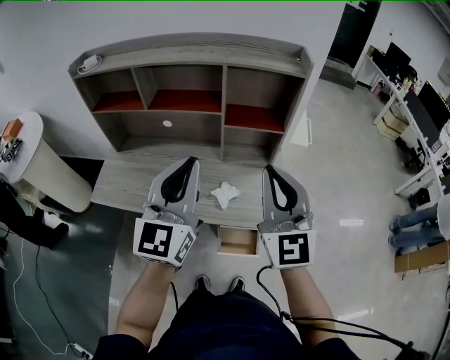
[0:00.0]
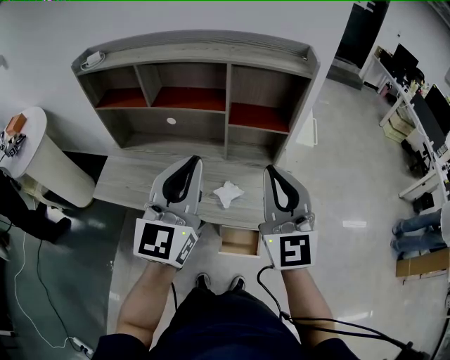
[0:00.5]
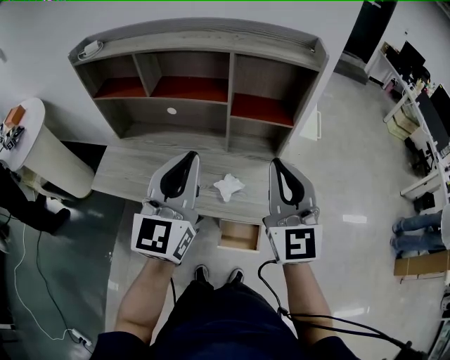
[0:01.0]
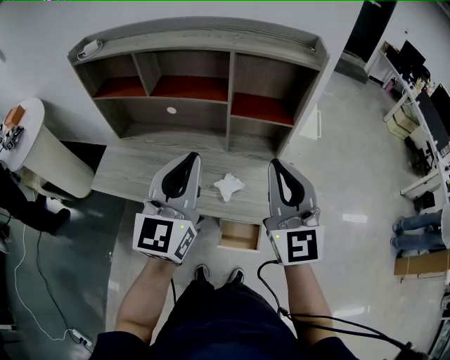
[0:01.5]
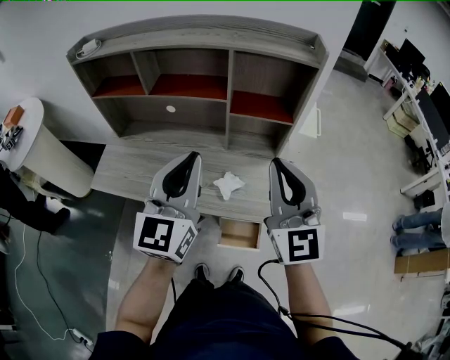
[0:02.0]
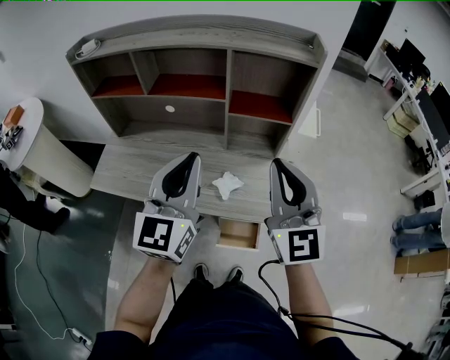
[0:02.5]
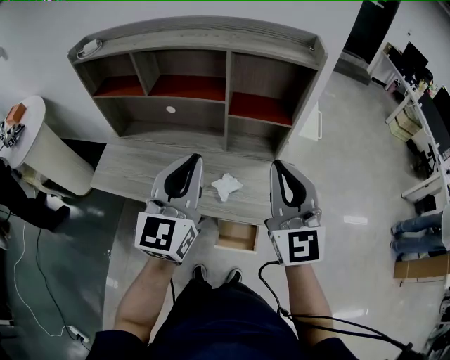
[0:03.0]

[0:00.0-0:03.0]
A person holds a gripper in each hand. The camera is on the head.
0:00.0 to 0:03.0: There are only small adjustments of the grippers.

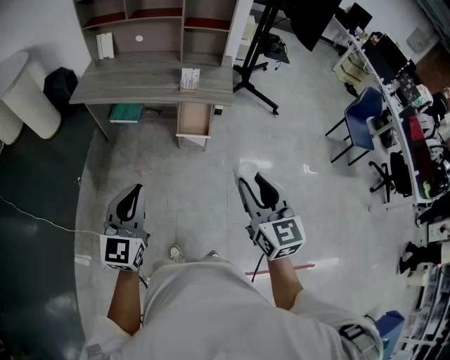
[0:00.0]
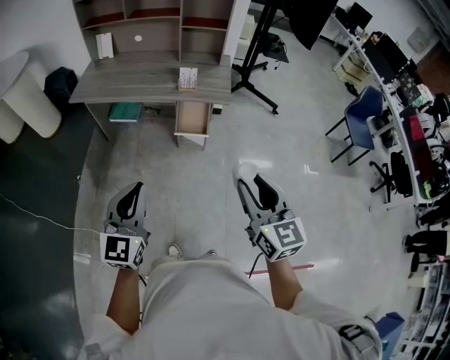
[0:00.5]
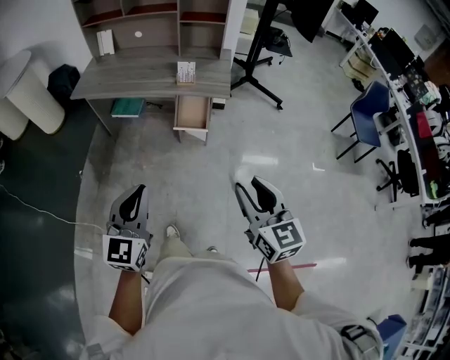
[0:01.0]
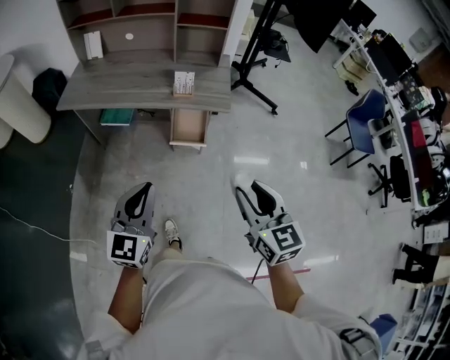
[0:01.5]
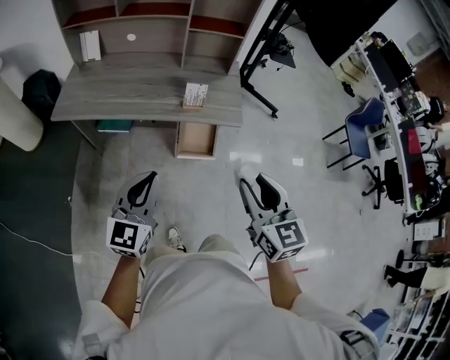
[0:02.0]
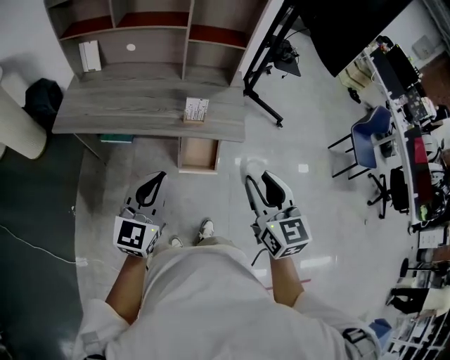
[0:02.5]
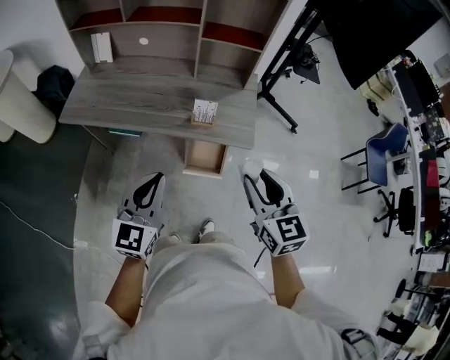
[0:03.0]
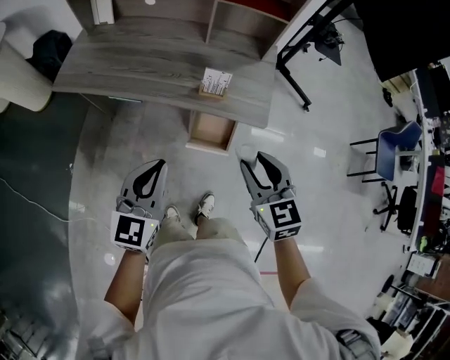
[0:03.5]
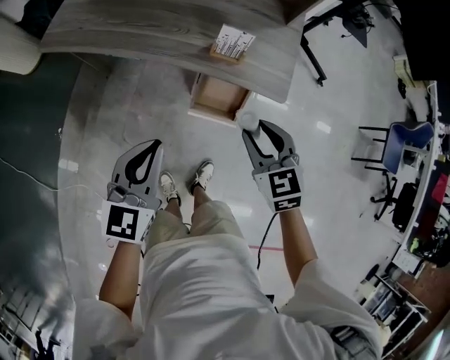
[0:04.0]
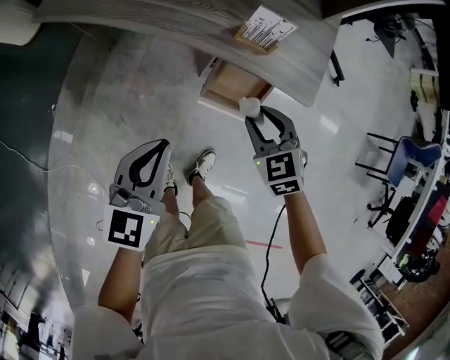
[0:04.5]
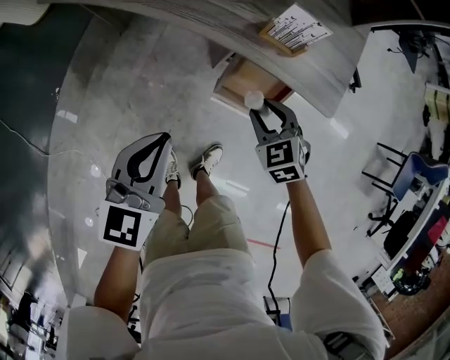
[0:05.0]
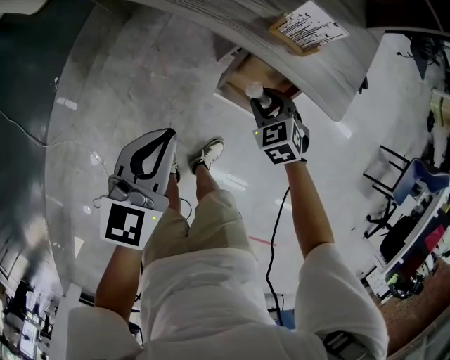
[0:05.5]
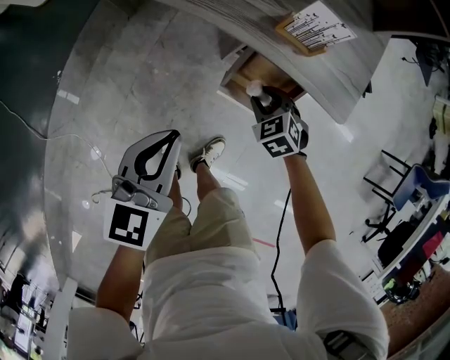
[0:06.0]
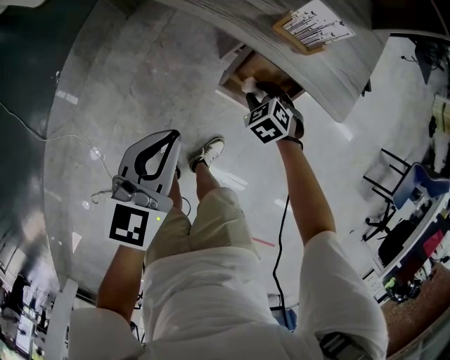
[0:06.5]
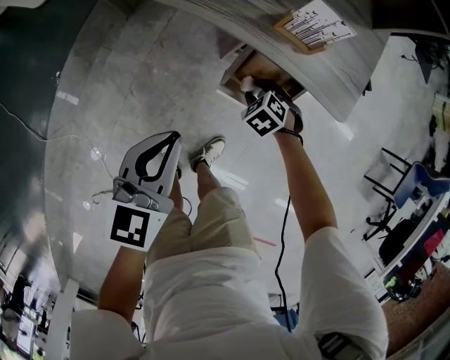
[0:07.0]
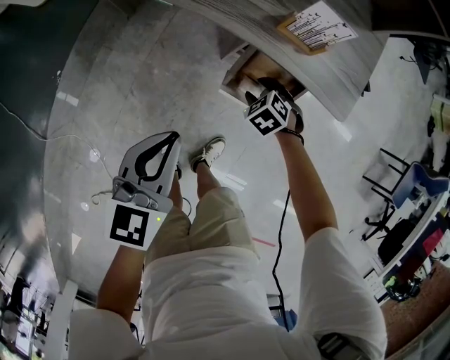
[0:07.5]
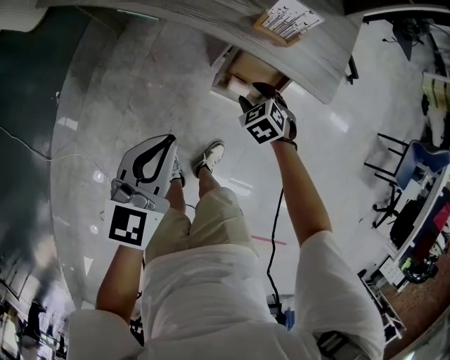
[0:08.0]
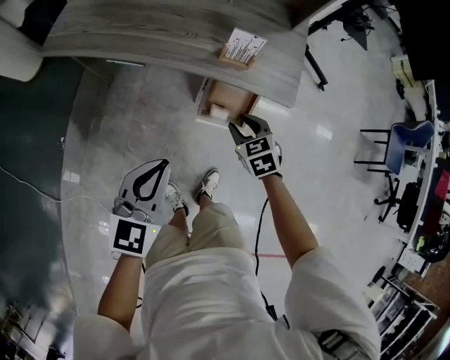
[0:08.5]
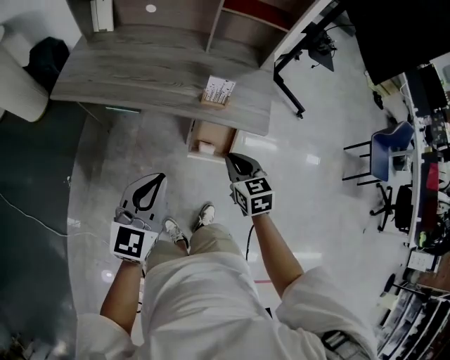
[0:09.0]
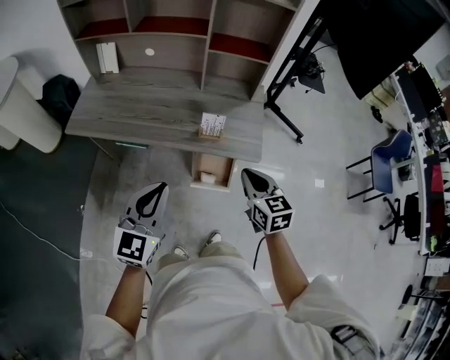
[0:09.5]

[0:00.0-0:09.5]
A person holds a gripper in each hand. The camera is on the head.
0:00.0 to 0:02.0: The grippers both shift forward by about 20 cm.
0:02.0 to 0:04.0: The right gripper shifts roughly 30 cm downward and forward, and rotates some 30 degrees. The left gripper heads downward and forward, covering about 15 cm.
0:04.0 to 0:05.5: The left gripper heads downward, covering roughly 15 cm. Meanwhile the right gripper shifts some 25 cm downward, and rotates about 30 degrees.
0:05.5 to 0:07.5: The right gripper moves downward, approximately 5 cm.
0:07.5 to 0:09.5: The left gripper shifts some 25 cm upward, and changes its angle by approximately 30 degrees. The right gripper goes about 40 cm upward, tilts its fingers about 50 degrees upward, and closes up.

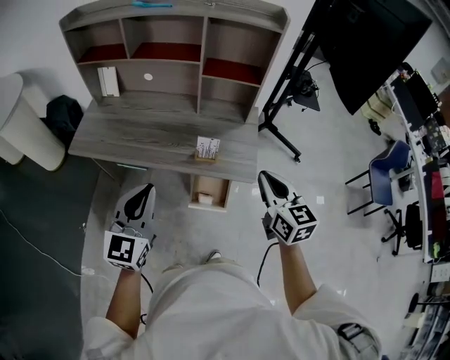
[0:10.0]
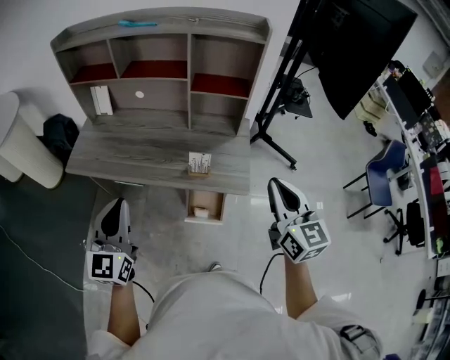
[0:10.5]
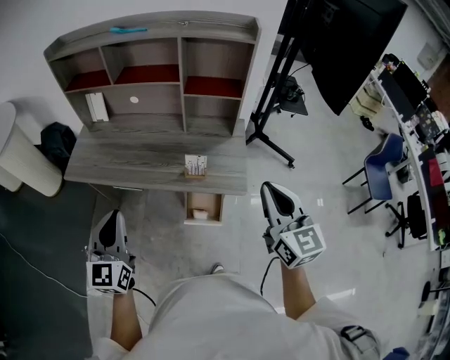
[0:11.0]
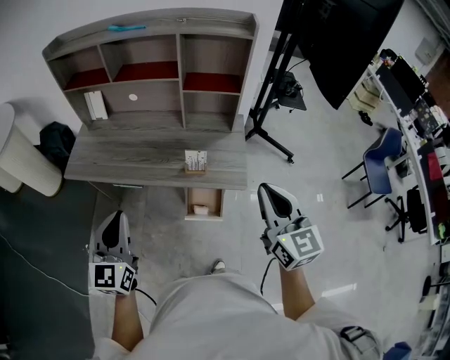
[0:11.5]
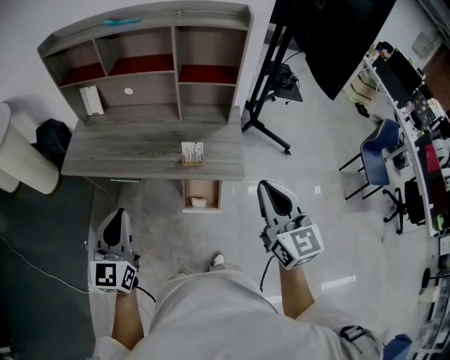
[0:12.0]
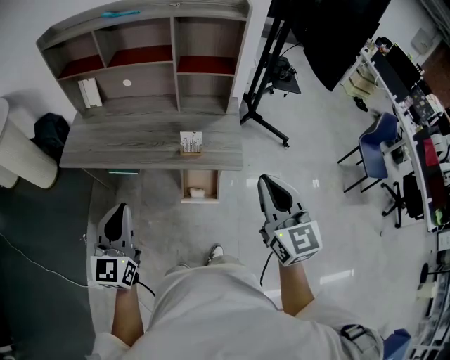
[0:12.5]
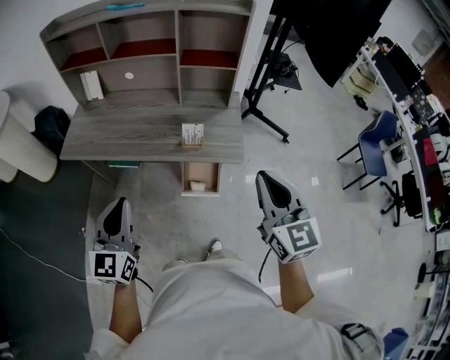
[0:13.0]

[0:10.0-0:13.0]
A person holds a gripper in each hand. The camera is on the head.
0:10.0 to 0:11.5: The right gripper is displaced upward by approximately 10 cm. The left gripper moves to the left, some 5 cm.
0:11.5 to 0:13.0: The two grippers go approximately 5 cm backward.

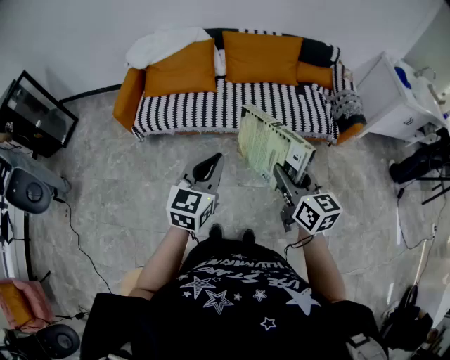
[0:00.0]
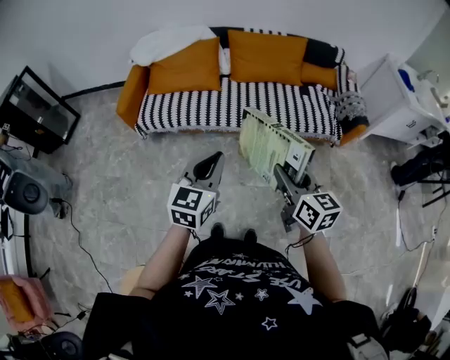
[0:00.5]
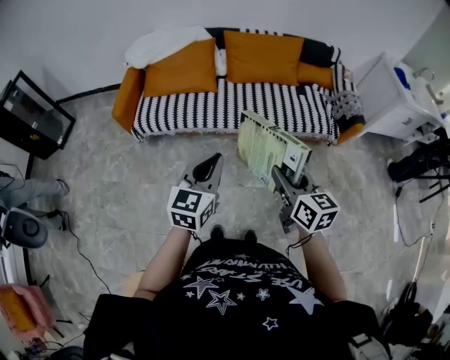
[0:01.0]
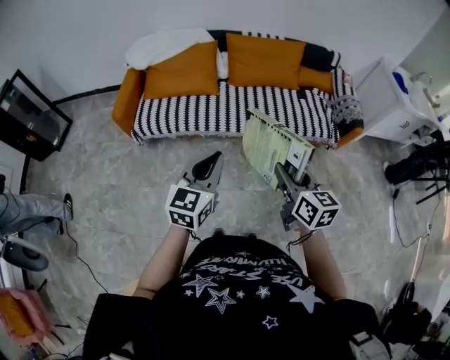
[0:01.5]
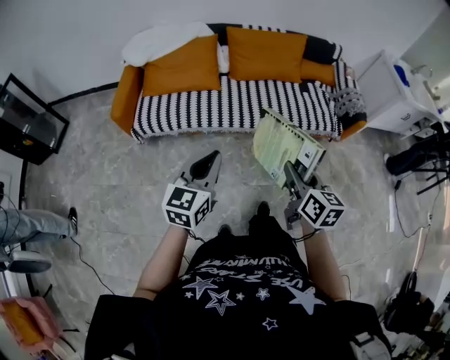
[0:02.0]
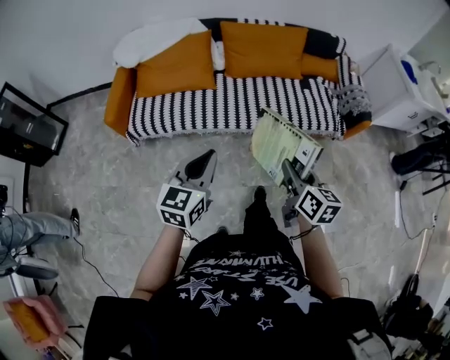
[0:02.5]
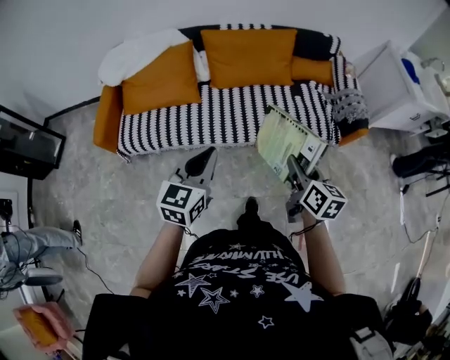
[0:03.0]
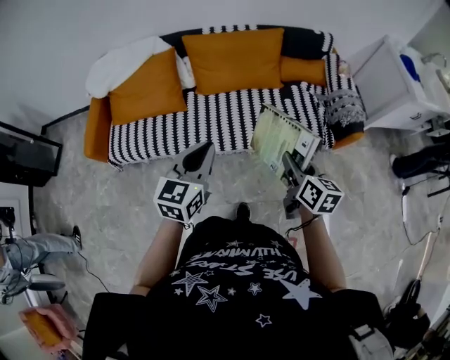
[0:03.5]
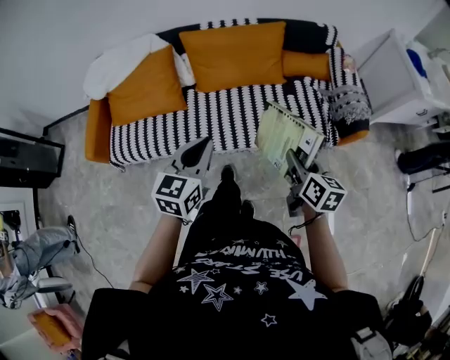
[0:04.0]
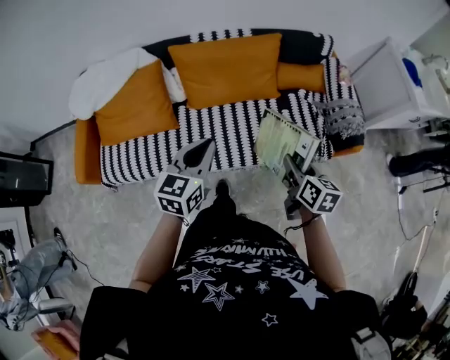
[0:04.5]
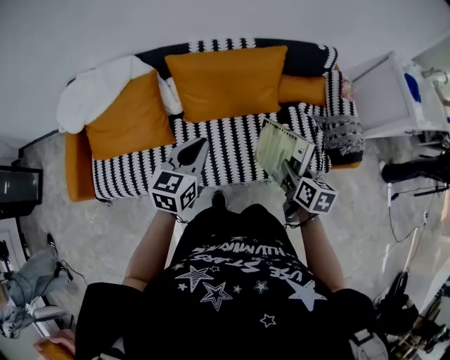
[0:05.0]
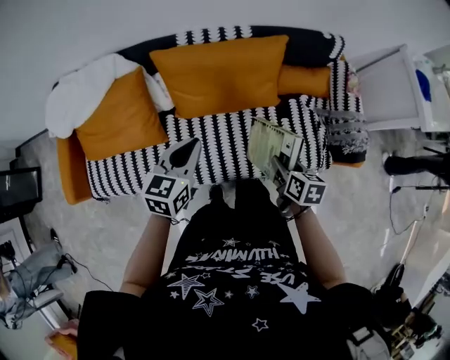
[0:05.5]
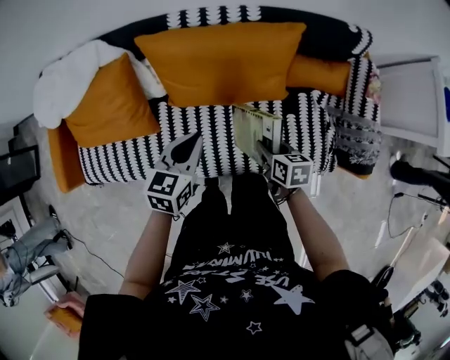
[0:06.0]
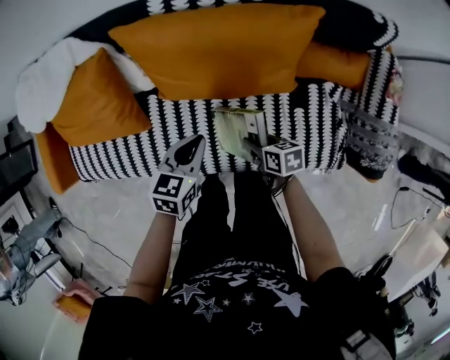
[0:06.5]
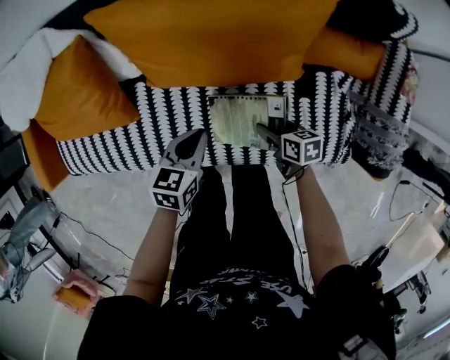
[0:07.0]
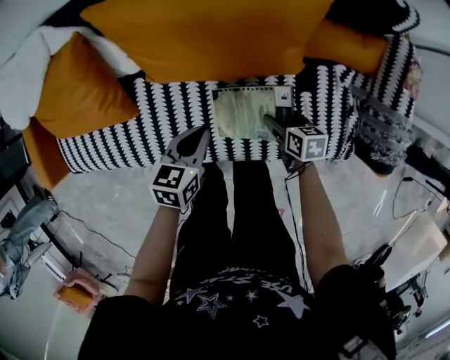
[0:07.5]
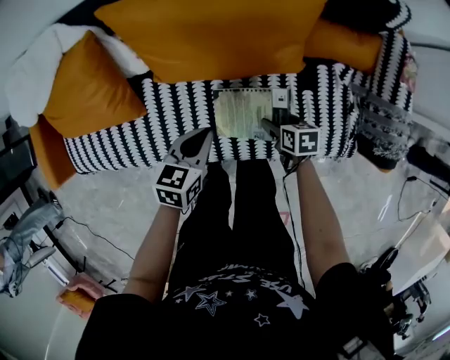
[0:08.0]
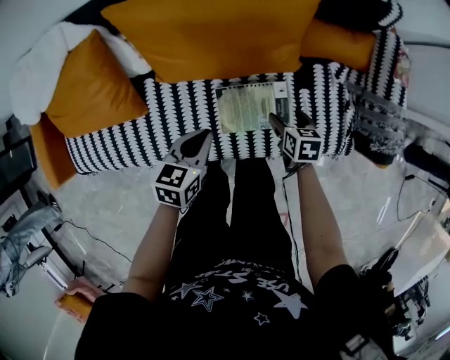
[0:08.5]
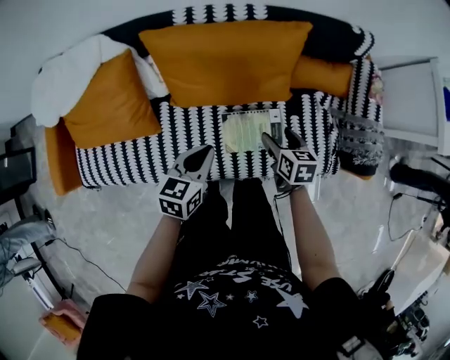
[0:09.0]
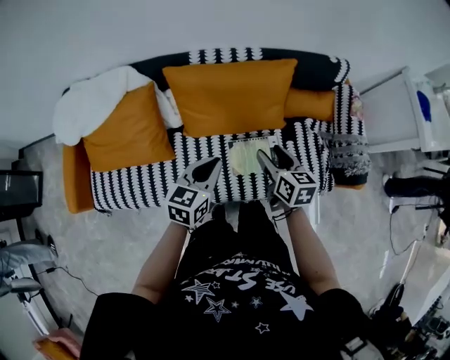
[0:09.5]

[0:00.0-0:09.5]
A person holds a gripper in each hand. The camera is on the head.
0:00.0 to 0:02.0: The left gripper moves to the left, about 10 cm. Meanwhile the right gripper heads to the left, covering roughly 5 cm.
0:02.0 to 0:04.0: Both grippers move forward and to the right, some 35 cm.
0:04.0 to 0:05.5: The left gripper moves forward, roughly 25 cm. The right gripper heads forward and downward, covering some 25 cm, and turns by some 20 degrees.
0:05.5 to 0:07.5: The left gripper heads downward, covering roughly 25 cm, and changes its angle by some 20 degrees. Meanwhile the right gripper travels downward and forward by approximately 30 cm, changes its angle by some 20 degrees, and opens its fingers.
0:07.5 to 0:09.5: The two grippers go roughly 25 cm upward. The right gripper swivels some 30 degrees. The left gripper swivels about 20 degrees.

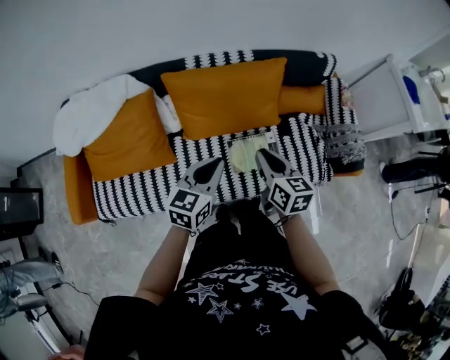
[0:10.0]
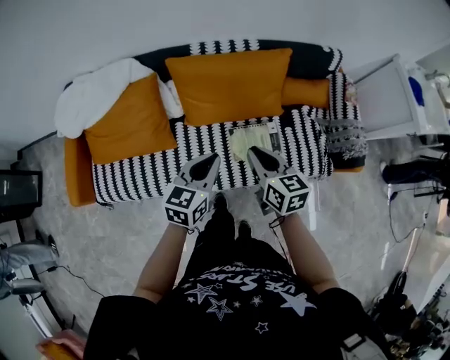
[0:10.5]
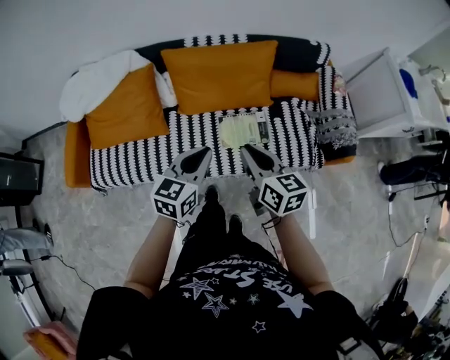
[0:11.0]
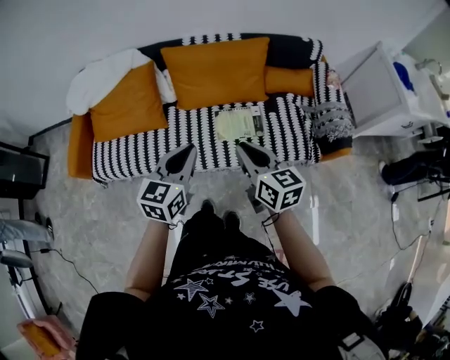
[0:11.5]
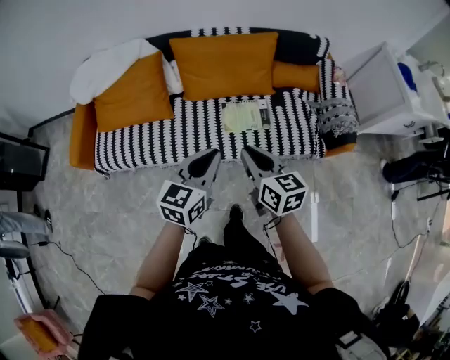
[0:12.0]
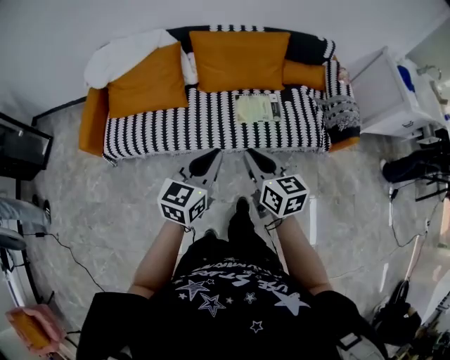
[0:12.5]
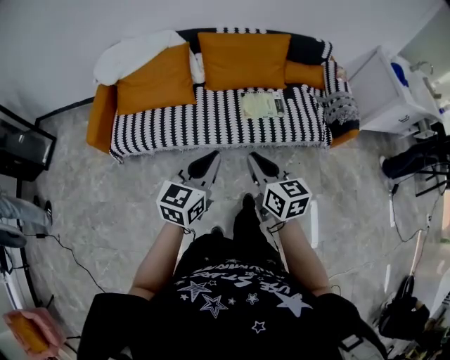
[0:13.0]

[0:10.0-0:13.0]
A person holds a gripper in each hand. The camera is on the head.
0:10.0 to 0:11.5: The two grippers go approximately 20 cm backward.
0:11.5 to 0:13.0: Both grippers travel together backward and to the left, approximately 25 cm.
